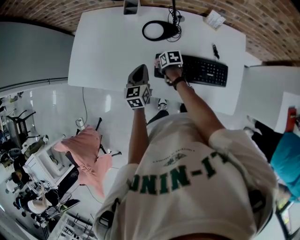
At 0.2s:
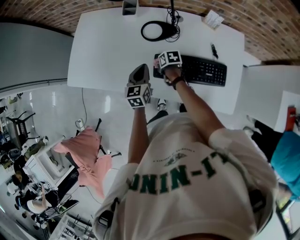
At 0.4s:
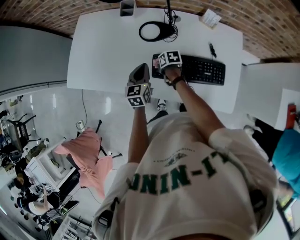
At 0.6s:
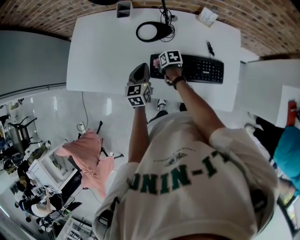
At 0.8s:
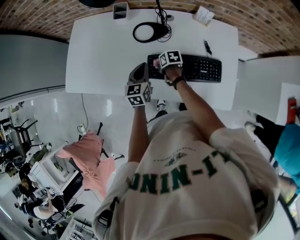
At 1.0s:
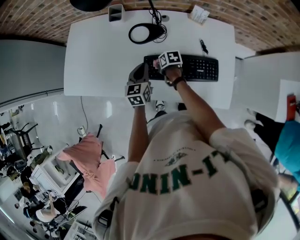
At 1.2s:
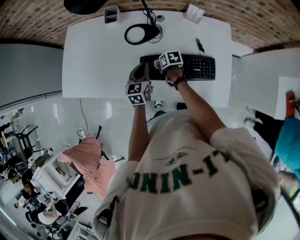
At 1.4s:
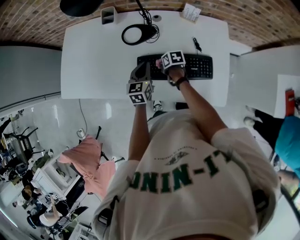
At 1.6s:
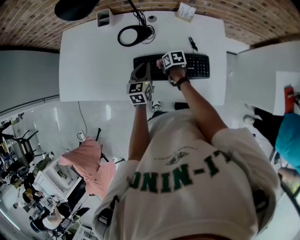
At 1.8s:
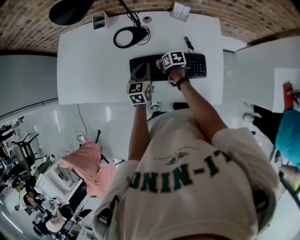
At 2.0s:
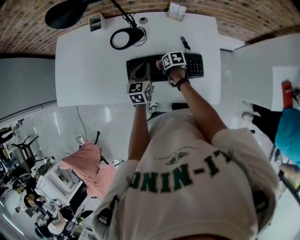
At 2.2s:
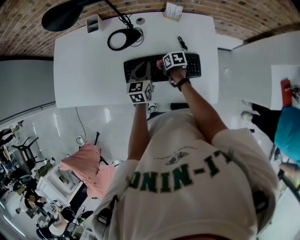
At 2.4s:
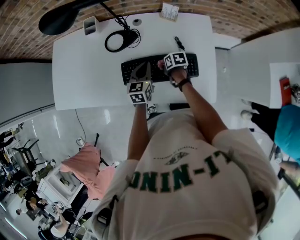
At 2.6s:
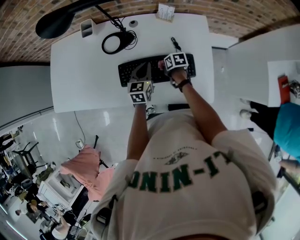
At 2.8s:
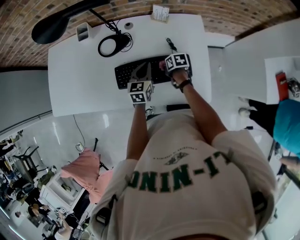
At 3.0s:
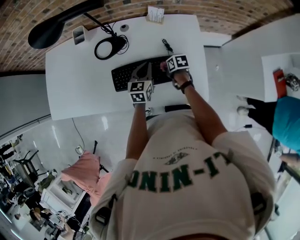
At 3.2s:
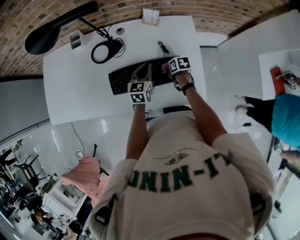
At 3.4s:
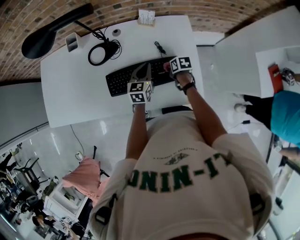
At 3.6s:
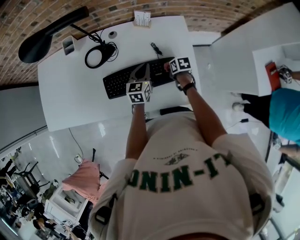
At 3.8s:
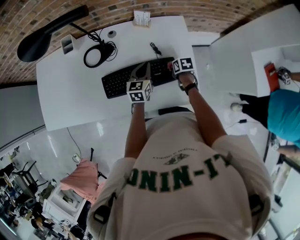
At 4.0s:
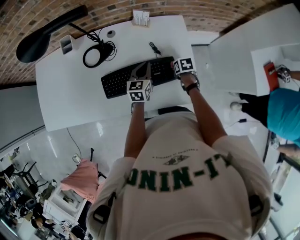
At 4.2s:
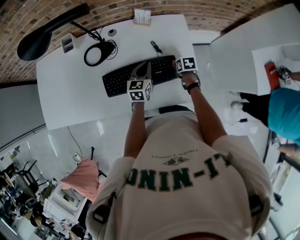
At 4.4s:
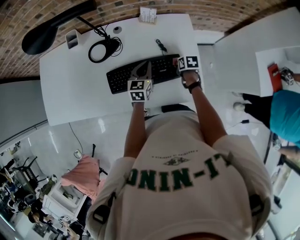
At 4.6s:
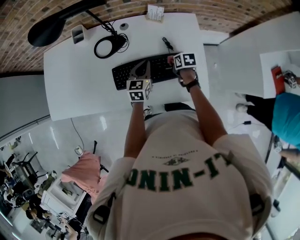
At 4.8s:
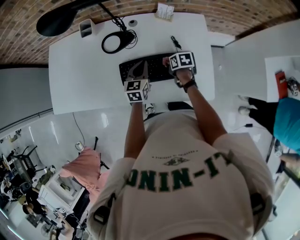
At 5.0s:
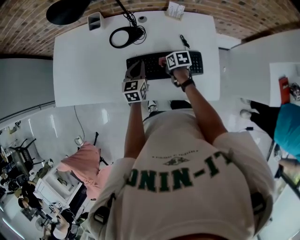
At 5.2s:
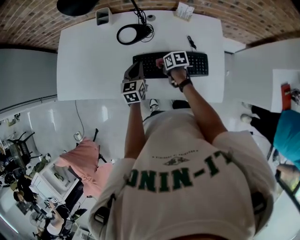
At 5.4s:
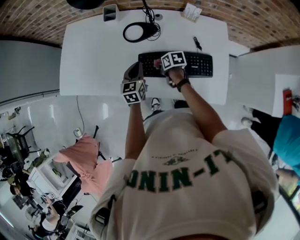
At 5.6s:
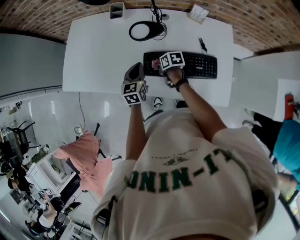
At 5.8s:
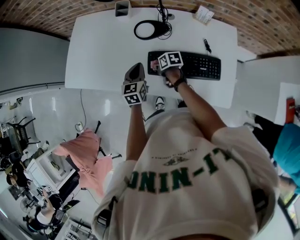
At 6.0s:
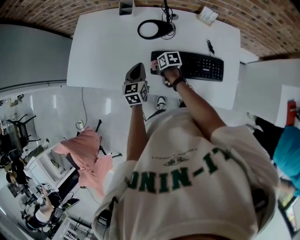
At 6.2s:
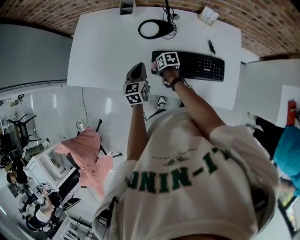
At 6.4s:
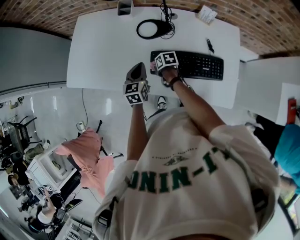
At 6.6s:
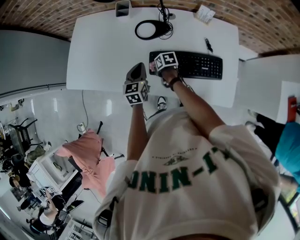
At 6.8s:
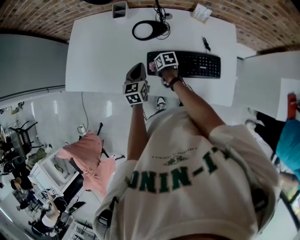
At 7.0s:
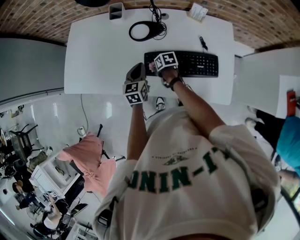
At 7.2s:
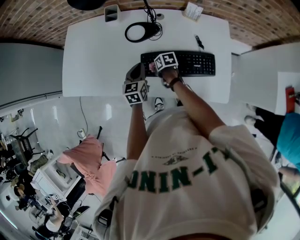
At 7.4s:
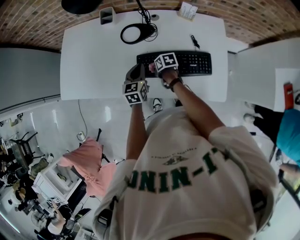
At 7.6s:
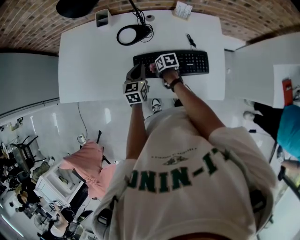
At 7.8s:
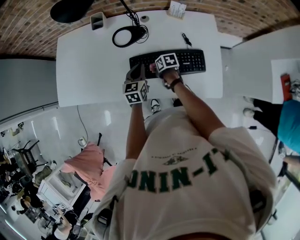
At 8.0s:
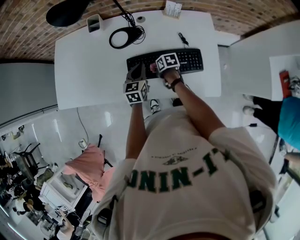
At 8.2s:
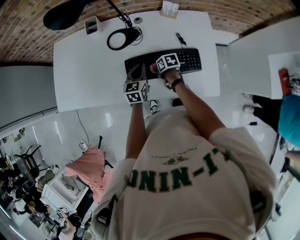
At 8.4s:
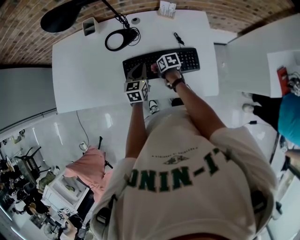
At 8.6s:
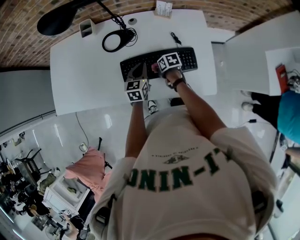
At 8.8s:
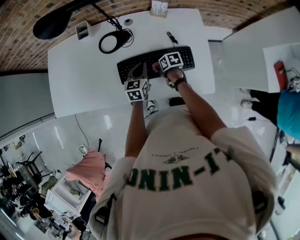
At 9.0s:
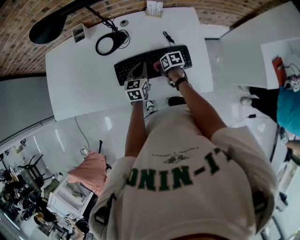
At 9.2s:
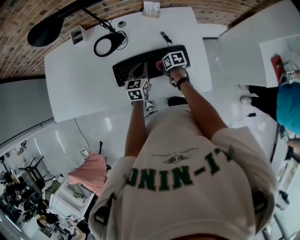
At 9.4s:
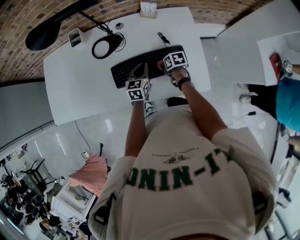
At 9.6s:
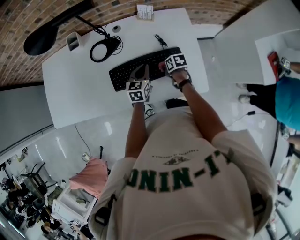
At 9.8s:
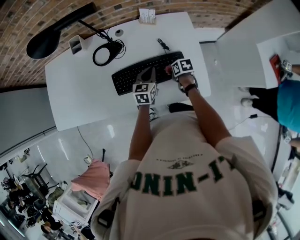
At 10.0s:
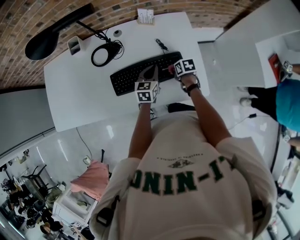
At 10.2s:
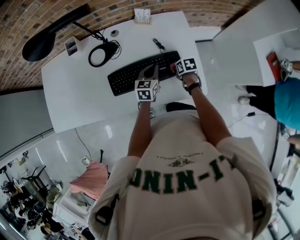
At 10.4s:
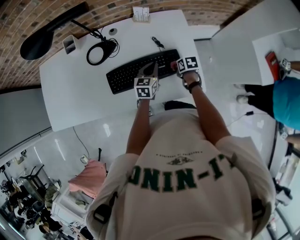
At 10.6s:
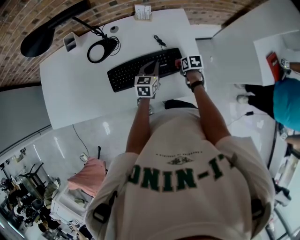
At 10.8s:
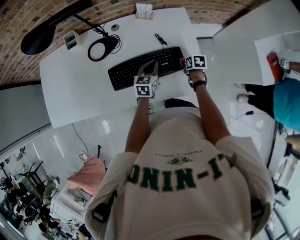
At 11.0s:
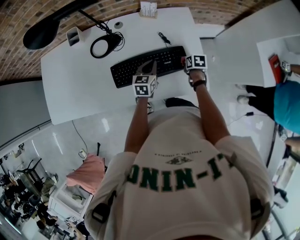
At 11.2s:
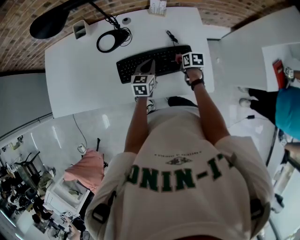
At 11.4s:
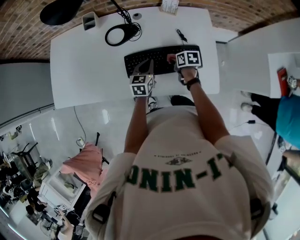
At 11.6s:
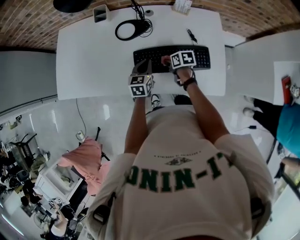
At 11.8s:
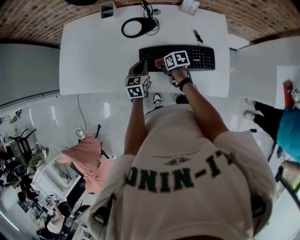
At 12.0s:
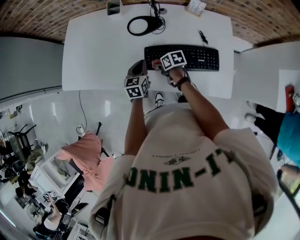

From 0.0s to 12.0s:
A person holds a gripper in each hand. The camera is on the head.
From 0.0s to 1.6s: The left gripper travels to the right by approximately 15 cm. The right gripper moves to the right and backward, approximately 15 cm.
From 1.6s to 3.0s: The left gripper moves to the right, about 15 cm; the right gripper shifts some 15 cm to the right and backward.
From 3.0s to 4.4s: The right gripper moves to the right, some 10 cm.
From 4.4s to 6.0s: The right gripper moves approximately 40 cm, and changes its angle by roughly 30 degrees; the left gripper moves some 30 cm, and changes its angle by roughly 30 degrees.
From 6.0s to 7.6s: The two grippers go approximately 10 cm to the right.
From 7.6s to 9.0s: The left gripper shifts roughly 10 cm to the right; the right gripper goes some 15 cm to the right and backward.
From 9.0s to 10.4s: Both grippers travel together to the right, about 15 cm.
From 10.4s to 12.0s: The left gripper moves approximately 30 cm, and swivels some 30 degrees. The right gripper changes place by approximately 35 cm, and rotates approximately 30 degrees.

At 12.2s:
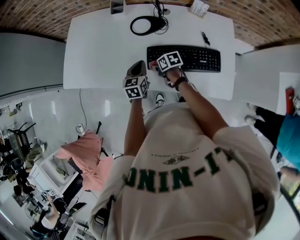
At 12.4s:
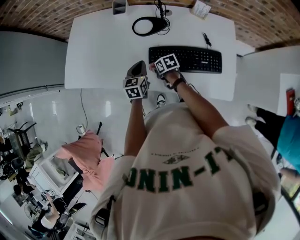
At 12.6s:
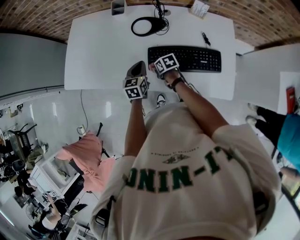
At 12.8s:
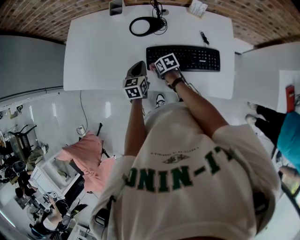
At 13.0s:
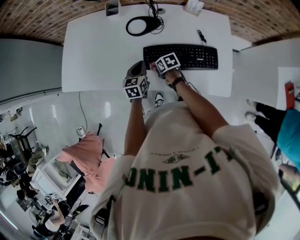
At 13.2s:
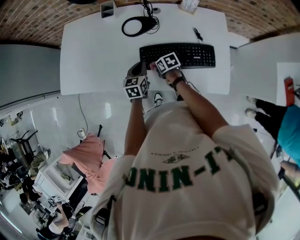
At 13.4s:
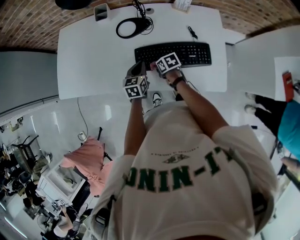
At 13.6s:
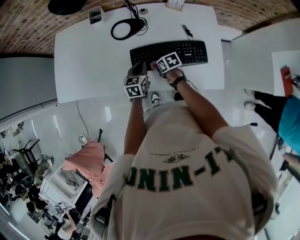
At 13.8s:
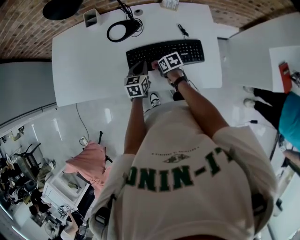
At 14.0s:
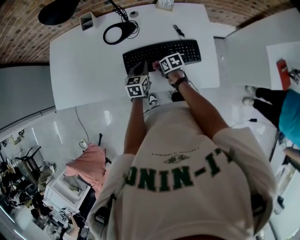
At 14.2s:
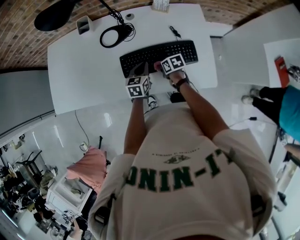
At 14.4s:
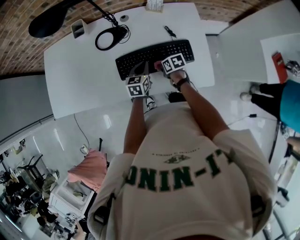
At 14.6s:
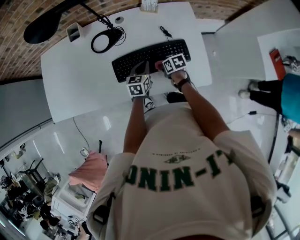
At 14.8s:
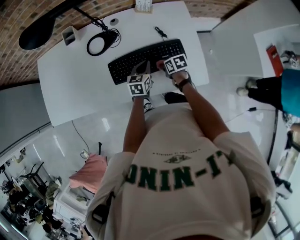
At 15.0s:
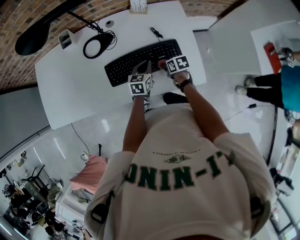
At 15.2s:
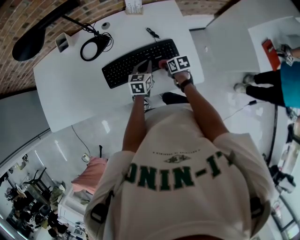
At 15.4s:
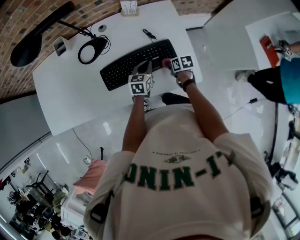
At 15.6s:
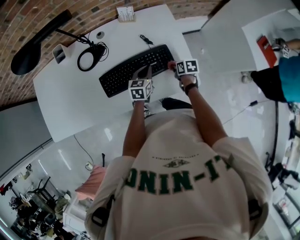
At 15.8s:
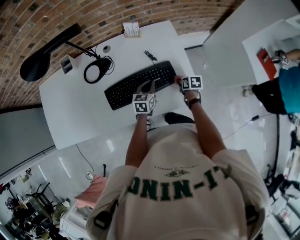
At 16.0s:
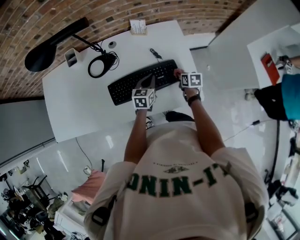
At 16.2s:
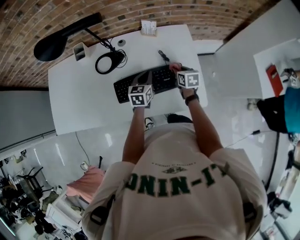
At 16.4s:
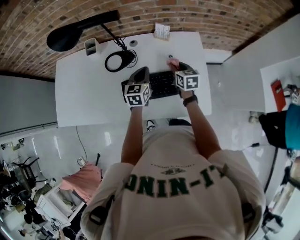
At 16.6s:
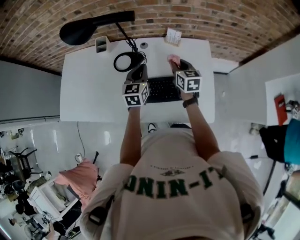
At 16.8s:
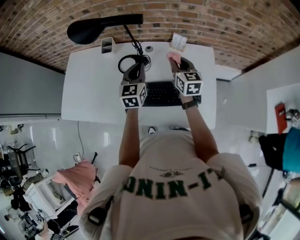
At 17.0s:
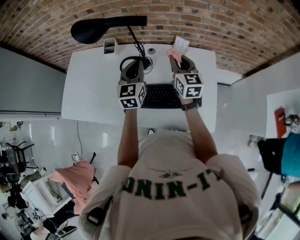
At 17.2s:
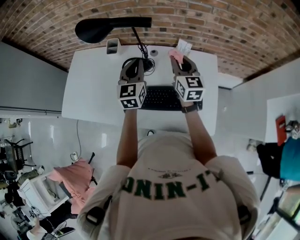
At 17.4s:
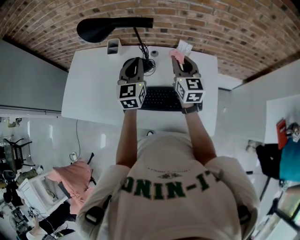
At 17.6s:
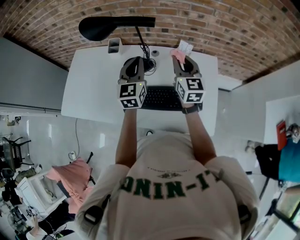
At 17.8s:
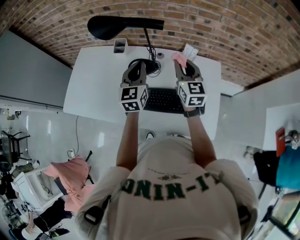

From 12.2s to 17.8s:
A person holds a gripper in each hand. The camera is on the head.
From 12.2s to 13.6s: Both grippers move to the right, about 10 cm.
From 13.6s to 15.0s: Both grippers travel together to the right, roughly 20 cm.
From 15.0s to 16.4s: The right gripper travels upward and forward by roughly 20 cm, and swivels some 30 degrees, while the left gripper is displaced upward, forward and to the left by some 15 cm.
From 16.4s to 17.8s: The grippers both shift upward and to the left by roughly 20 cm. The right gripper turns by roughly 30 degrees; the left gripper rotates about 20 degrees.

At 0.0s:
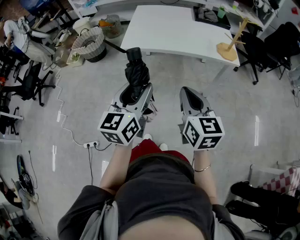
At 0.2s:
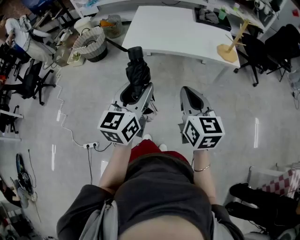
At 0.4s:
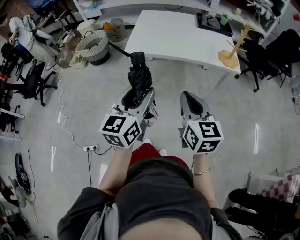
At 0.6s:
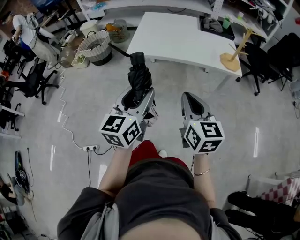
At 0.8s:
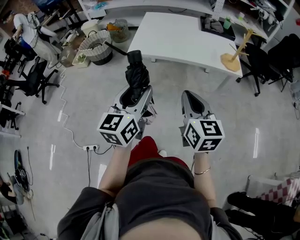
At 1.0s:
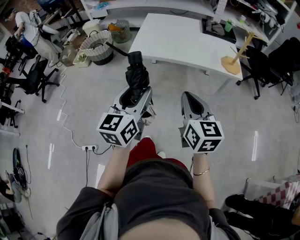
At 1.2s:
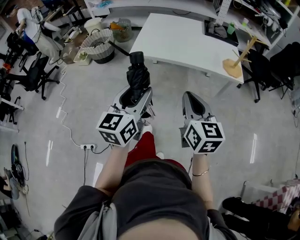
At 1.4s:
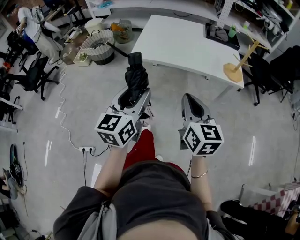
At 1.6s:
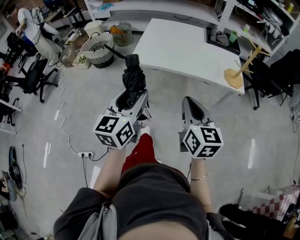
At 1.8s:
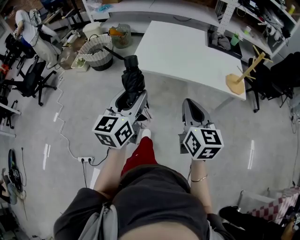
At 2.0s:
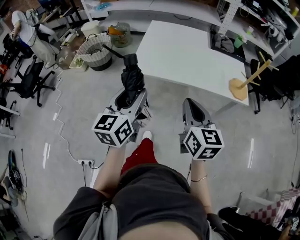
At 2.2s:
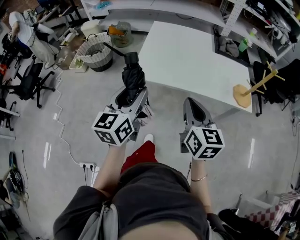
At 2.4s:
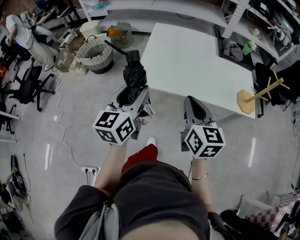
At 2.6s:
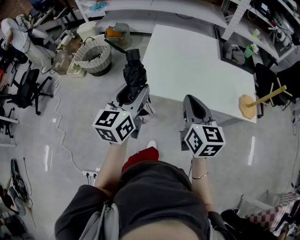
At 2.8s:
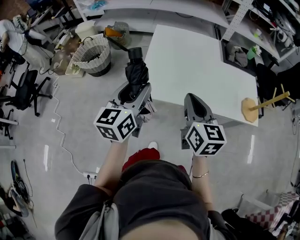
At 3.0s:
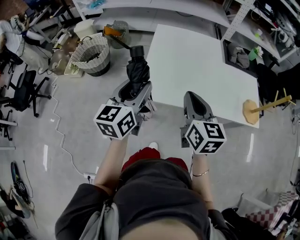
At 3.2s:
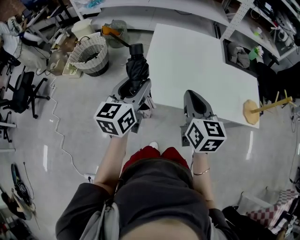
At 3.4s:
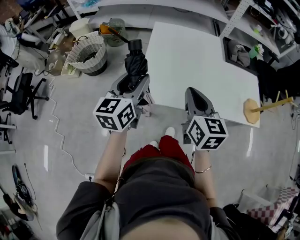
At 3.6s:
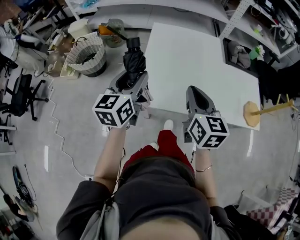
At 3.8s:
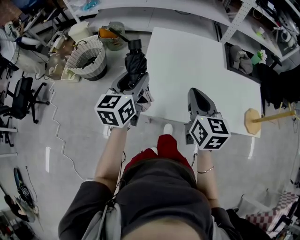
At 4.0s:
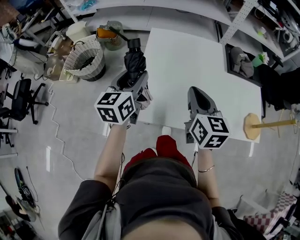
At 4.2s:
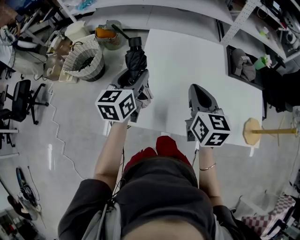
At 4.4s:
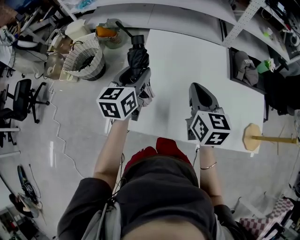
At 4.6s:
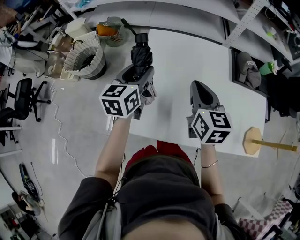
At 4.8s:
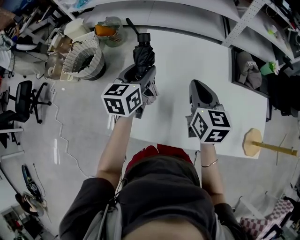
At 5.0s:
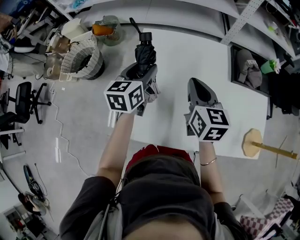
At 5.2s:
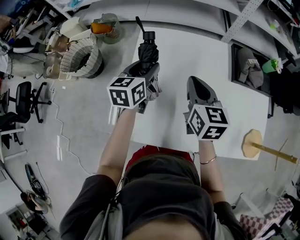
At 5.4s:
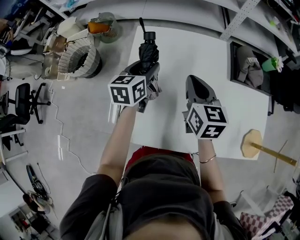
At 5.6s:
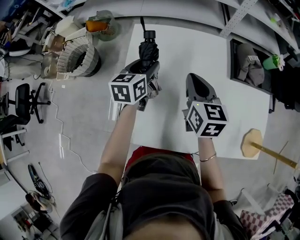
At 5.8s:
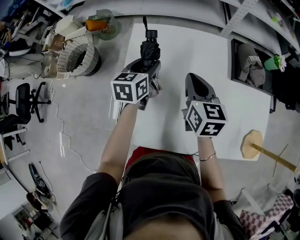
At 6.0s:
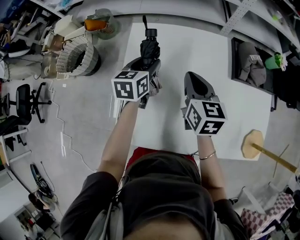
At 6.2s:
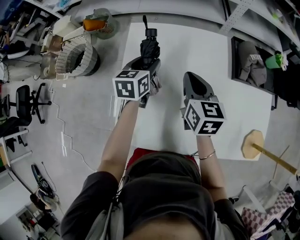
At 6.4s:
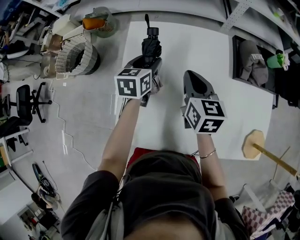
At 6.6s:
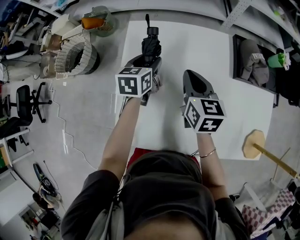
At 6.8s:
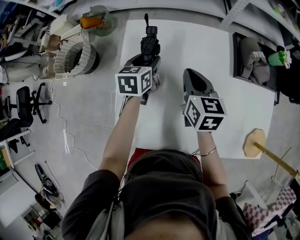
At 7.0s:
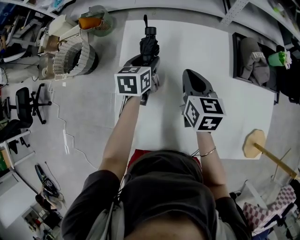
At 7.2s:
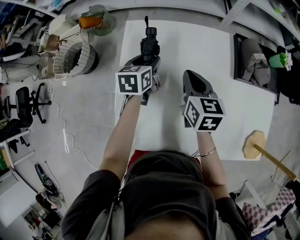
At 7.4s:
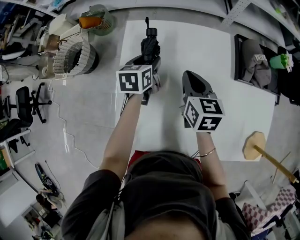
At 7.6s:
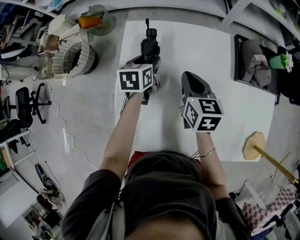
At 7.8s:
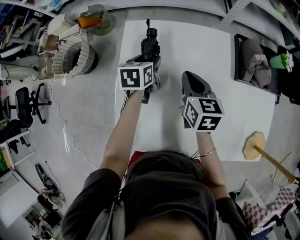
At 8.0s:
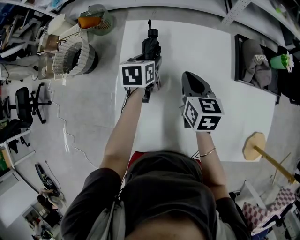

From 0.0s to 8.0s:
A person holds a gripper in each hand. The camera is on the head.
From 0.0s to 1.6s: The two grippers go some 5 cm forward.
From 1.6s to 3.2s: Both grippers travel together forward, about 35 cm.
From 3.2s to 4.8s: Both grippers travel together forward, some 25 cm.
From 4.8s to 6.4s: The right gripper shifts roughly 10 cm forward and downward, while the left gripper heads downward, forward and to the right, covering approximately 15 cm.
From 6.4s to 8.0s: The left gripper is displaced downward by roughly 5 cm.
